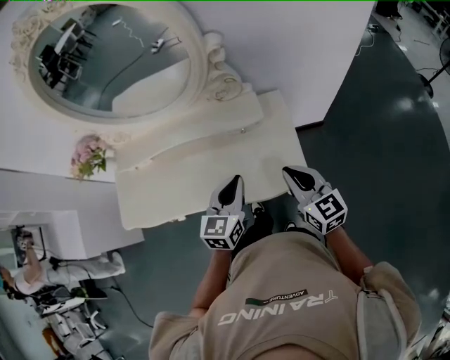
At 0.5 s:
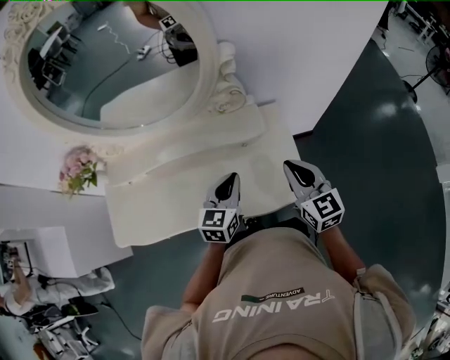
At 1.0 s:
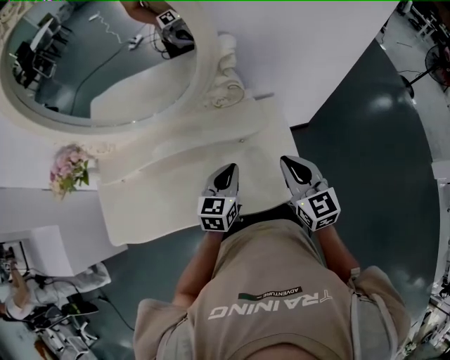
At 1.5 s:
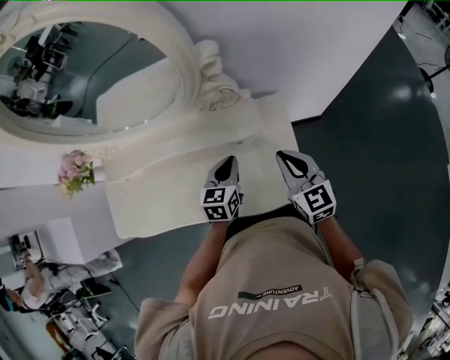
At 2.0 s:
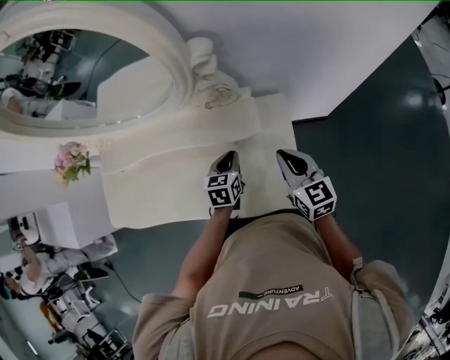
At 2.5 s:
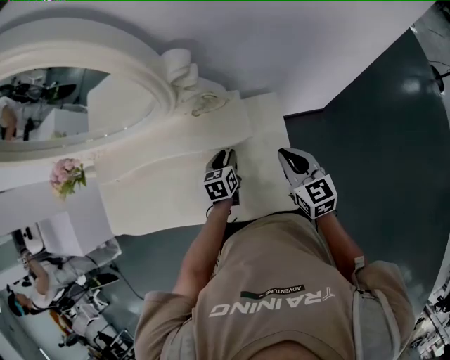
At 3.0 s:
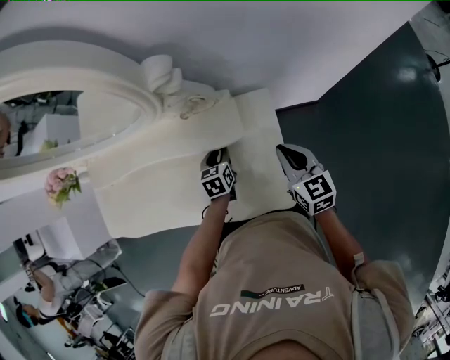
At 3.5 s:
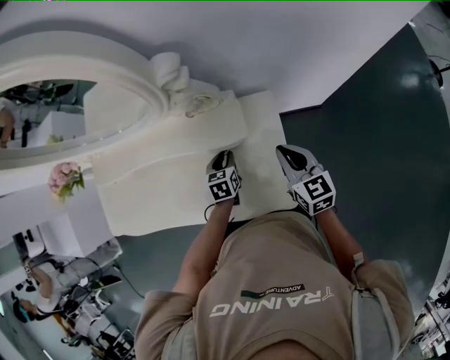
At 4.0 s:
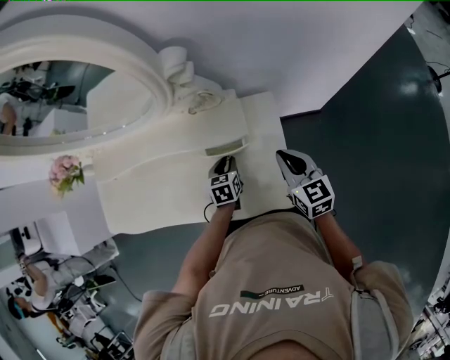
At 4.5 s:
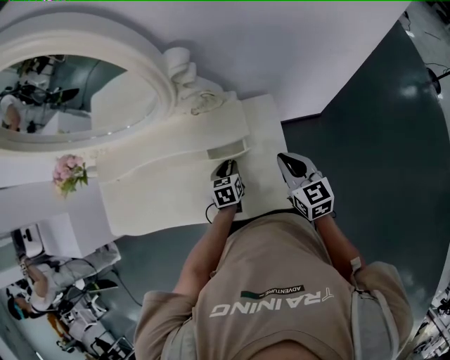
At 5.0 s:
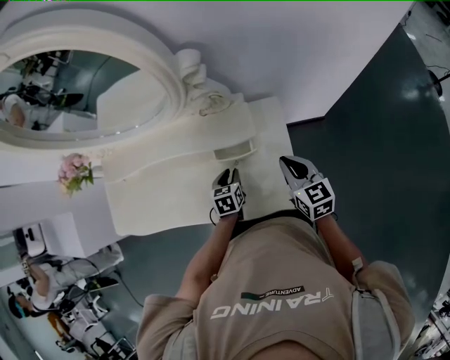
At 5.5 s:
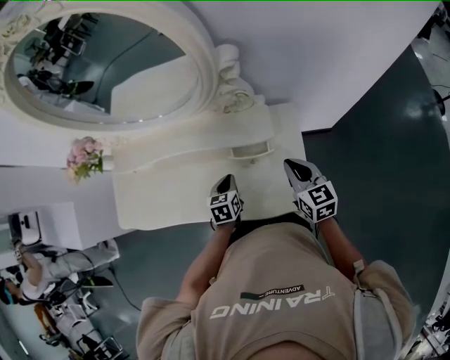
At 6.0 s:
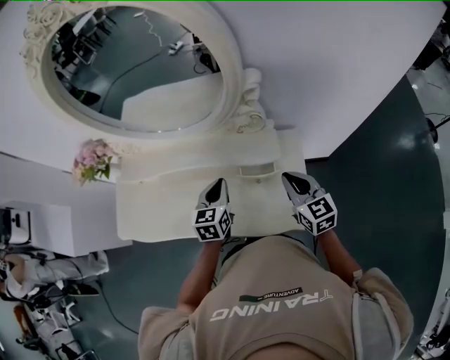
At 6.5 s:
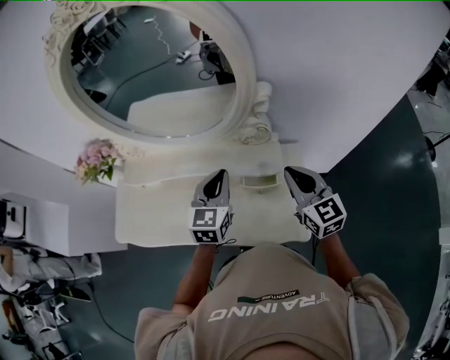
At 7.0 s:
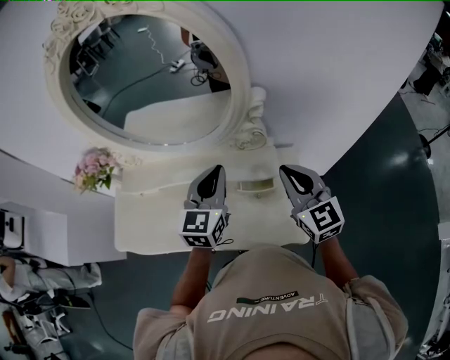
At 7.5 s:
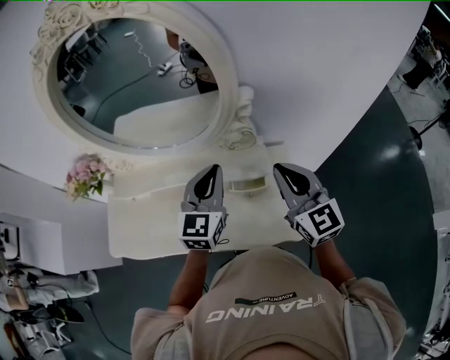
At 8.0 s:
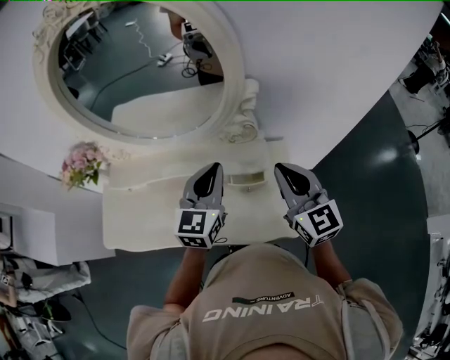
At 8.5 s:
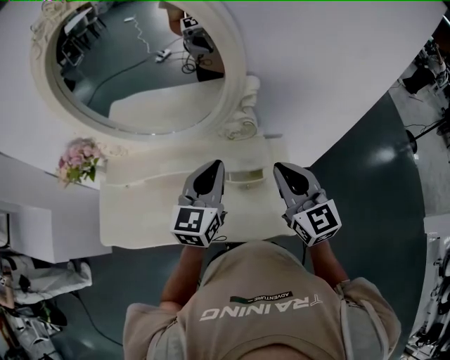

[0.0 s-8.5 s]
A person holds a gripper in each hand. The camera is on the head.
0.0 to 2.0 s: The right gripper heads forward, covering some 15 cm; the left gripper is displaced forward and downward by some 20 cm, and turns by approximately 20 degrees.
2.0 to 4.0 s: The left gripper heads downward, covering roughly 5 cm.
4.0 to 6.5 s: The left gripper shifts approximately 30 cm upward, tilts its fingers some 30 degrees upward, and closes its fingers; the right gripper travels upward and to the left by approximately 20 cm.
6.5 to 8.5 s: The grippers both shift upward by some 5 cm.

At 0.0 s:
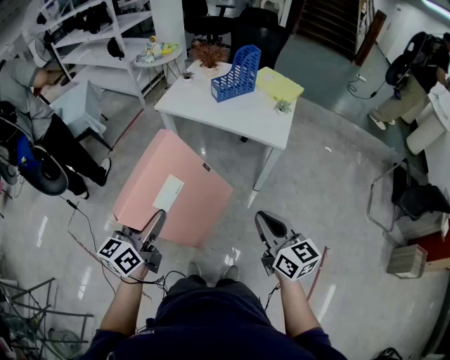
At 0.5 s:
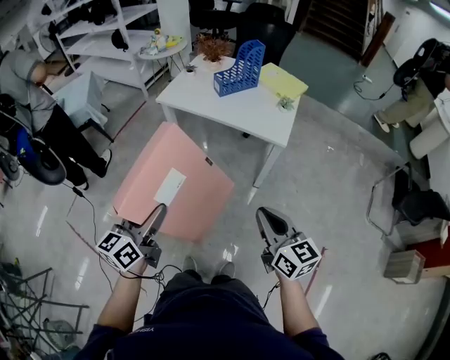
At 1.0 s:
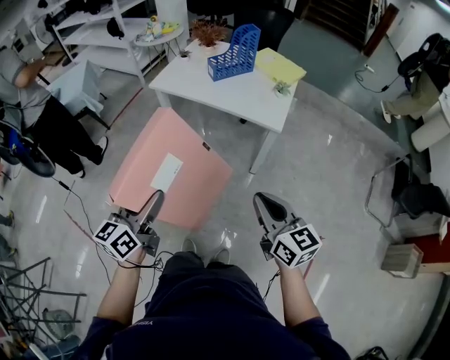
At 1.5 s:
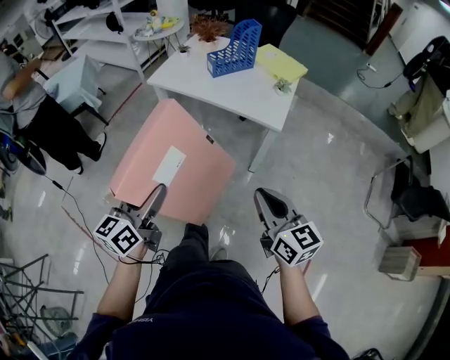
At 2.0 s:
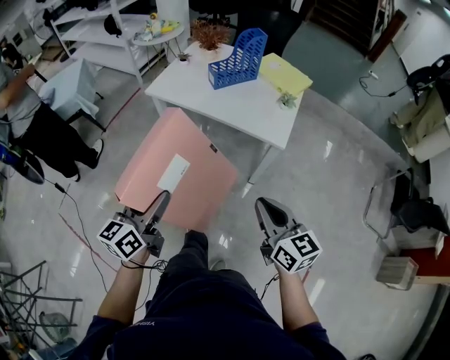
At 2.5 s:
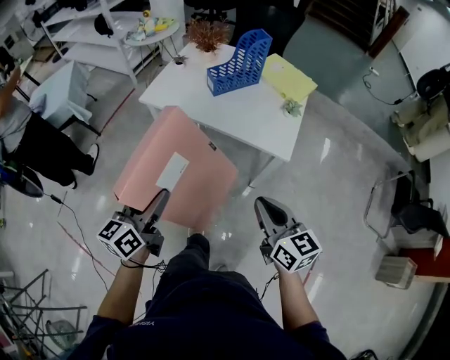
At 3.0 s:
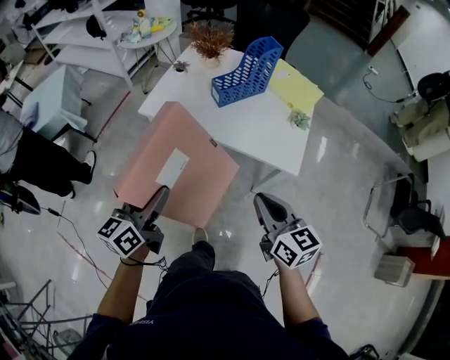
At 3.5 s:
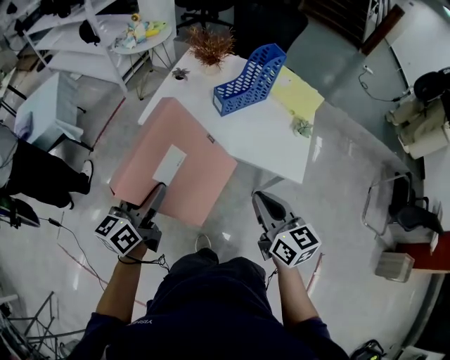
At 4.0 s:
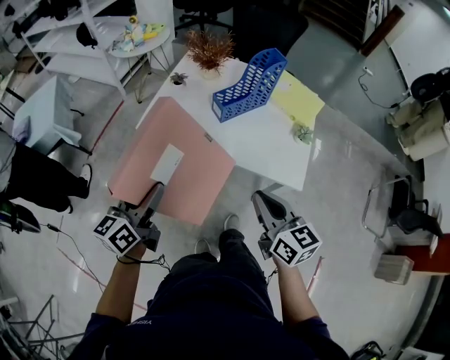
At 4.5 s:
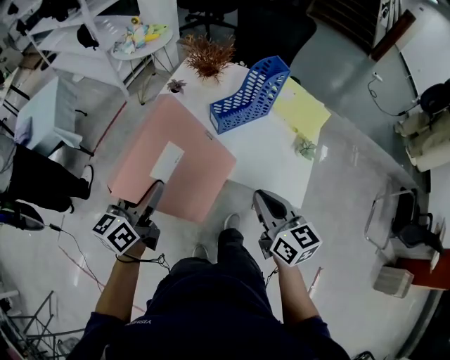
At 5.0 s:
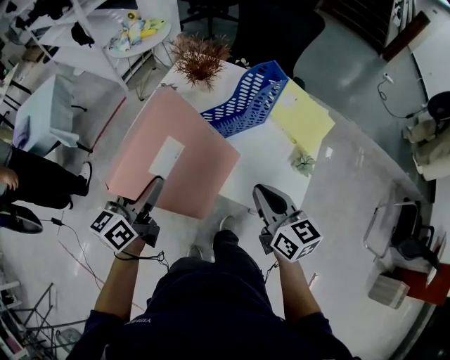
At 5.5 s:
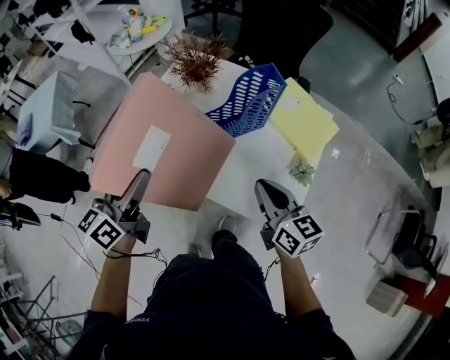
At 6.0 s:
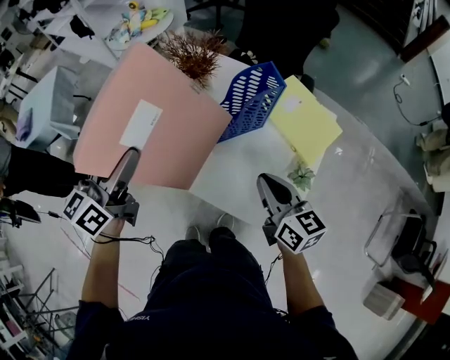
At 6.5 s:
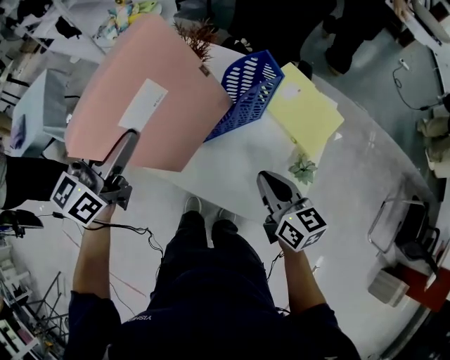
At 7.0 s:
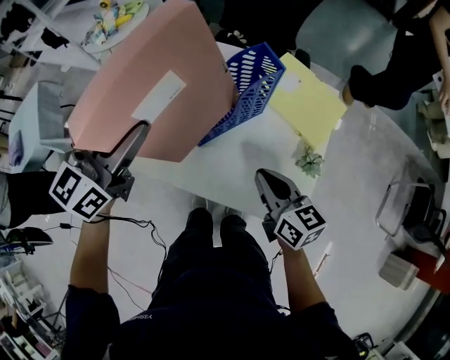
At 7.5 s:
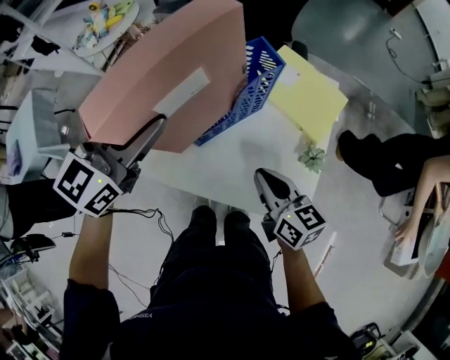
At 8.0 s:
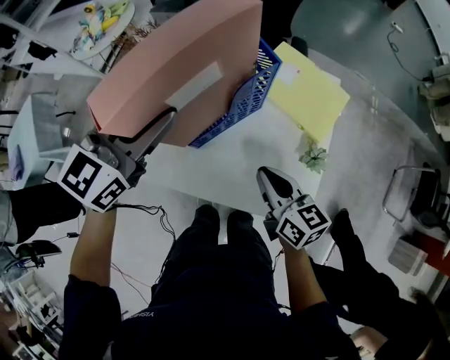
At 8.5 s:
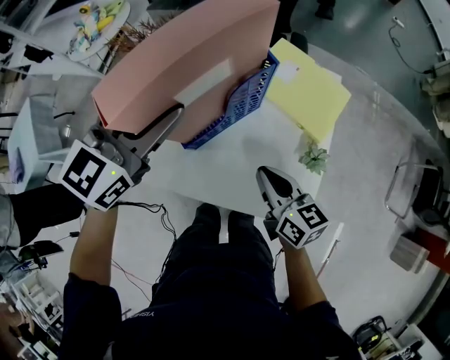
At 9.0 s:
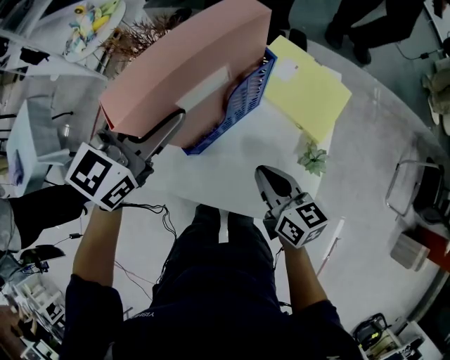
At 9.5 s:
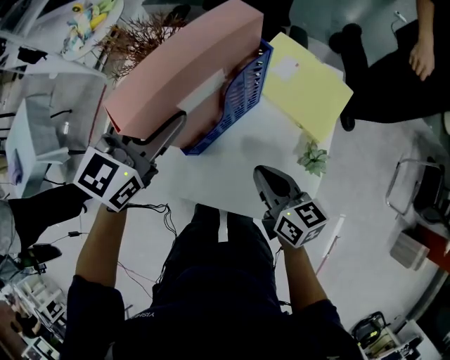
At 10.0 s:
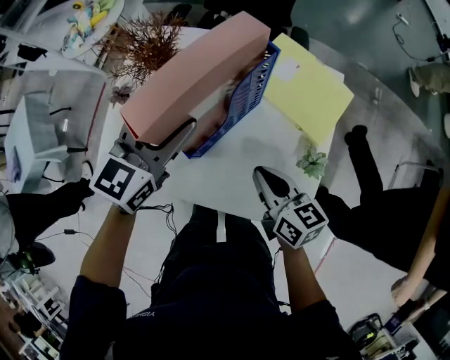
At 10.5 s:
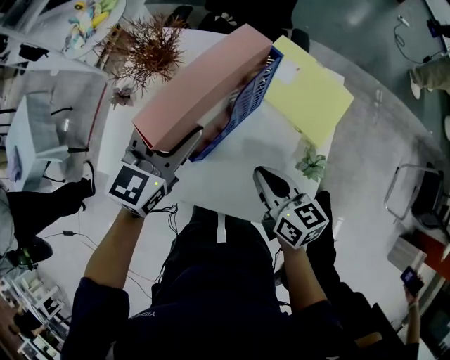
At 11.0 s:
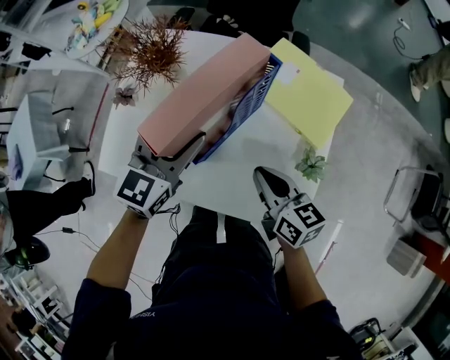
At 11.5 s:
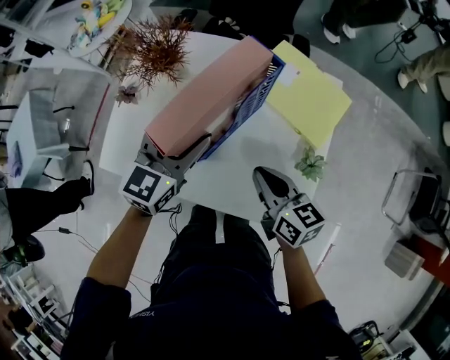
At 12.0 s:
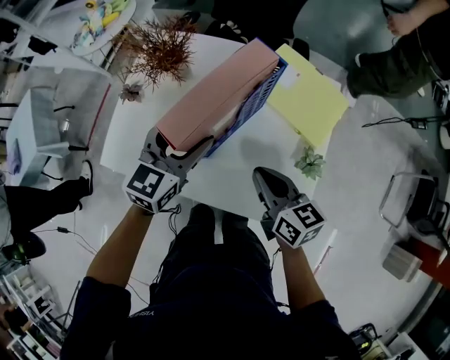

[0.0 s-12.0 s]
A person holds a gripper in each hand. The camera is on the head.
0.0 to 2.0 s: The right gripper is displaced forward by approximately 10 cm. Meanwhile the left gripper is displaced forward and to the right by approximately 10 cm.
2.0 to 4.0 s: The grippers both shift forward by about 25 cm.
4.0 to 6.0 s: The two grippers go some 25 cm forward and to the right.
6.0 to 8.0 s: The right gripper heads downward, covering roughly 5 cm. The left gripper heads forward and to the right, covering some 15 cm, and rotates about 40 degrees.
8.0 to 10.0 s: The left gripper heads downward, covering some 10 cm.
10.0 to 12.0 s: The left gripper changes place by roughly 5 cm.

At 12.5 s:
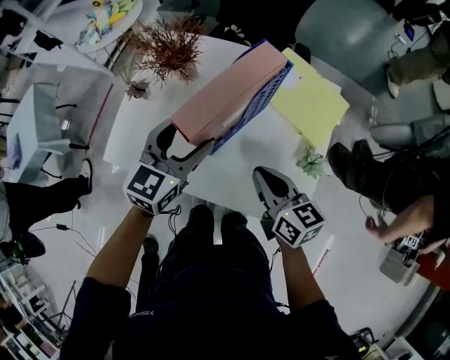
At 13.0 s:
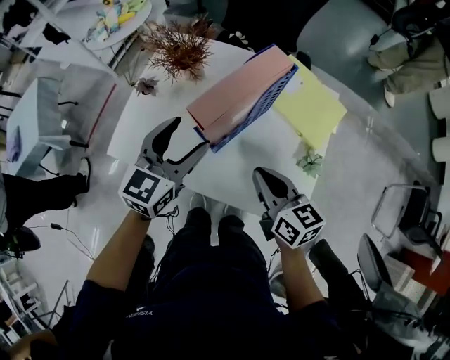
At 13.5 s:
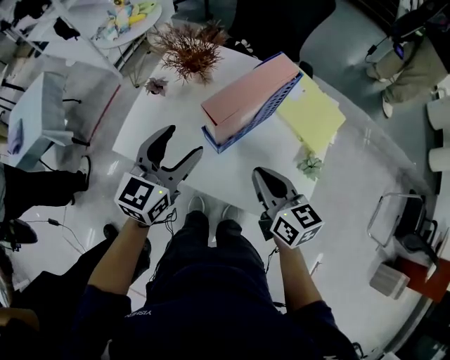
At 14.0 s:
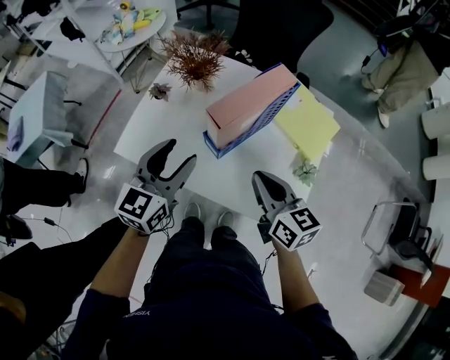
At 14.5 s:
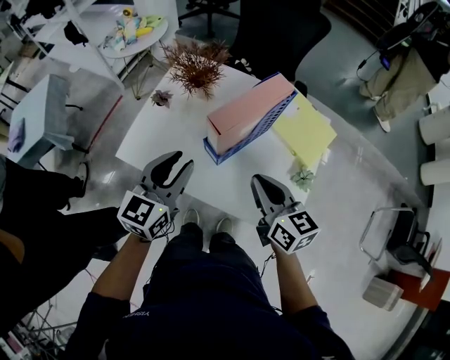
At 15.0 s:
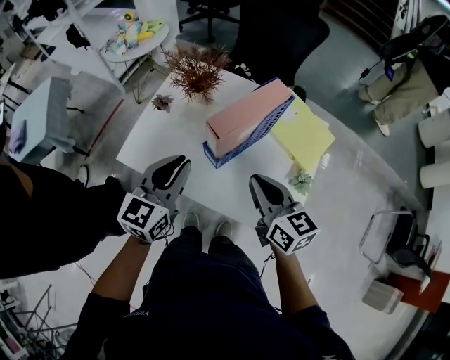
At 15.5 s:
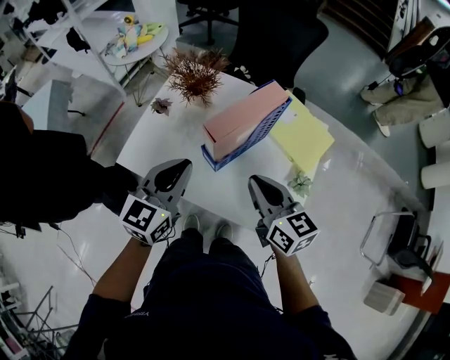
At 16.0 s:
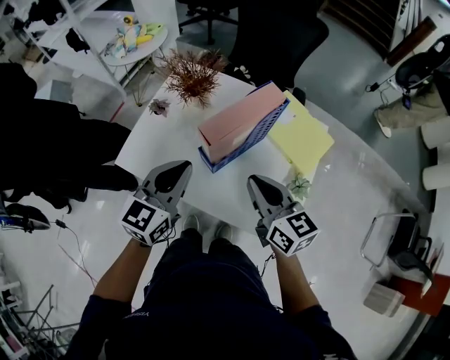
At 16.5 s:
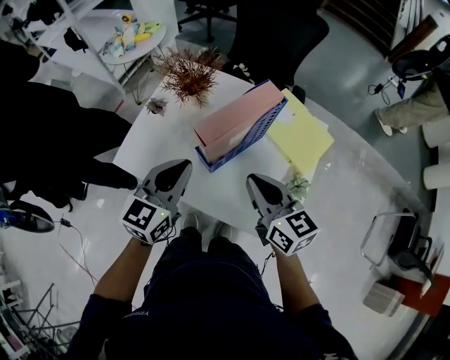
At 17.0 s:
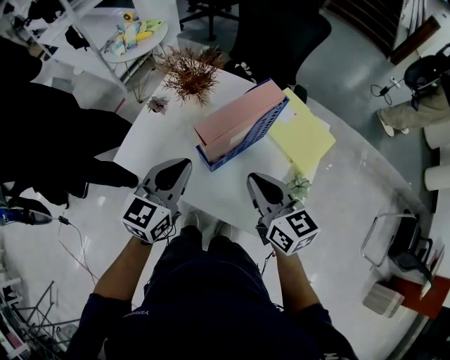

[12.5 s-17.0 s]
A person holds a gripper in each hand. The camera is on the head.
12.5 to 14.5 s: The left gripper moves backward, to the left and upward, roughly 15 cm, and closes up; the right gripper travels upward by approximately 10 cm.
14.5 to 17.0 s: The grippers stay close to where they were, moving slightly.

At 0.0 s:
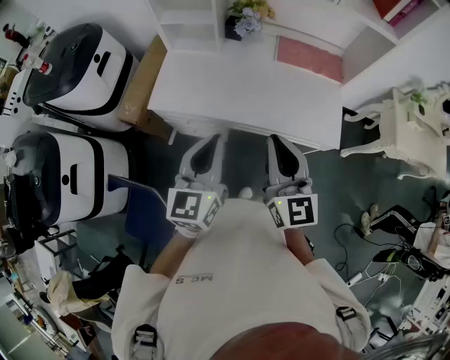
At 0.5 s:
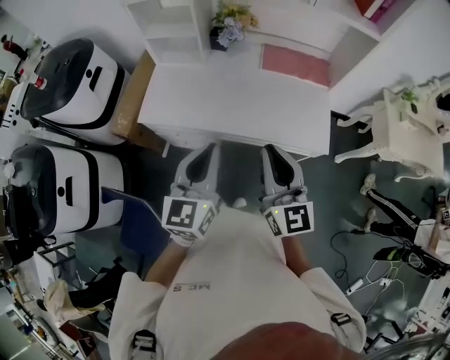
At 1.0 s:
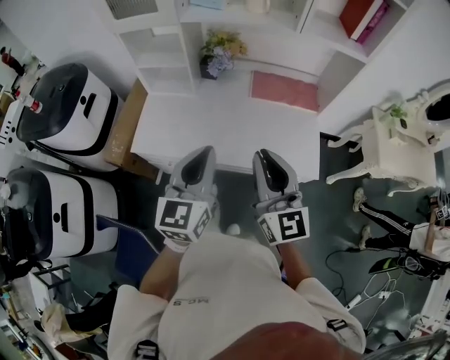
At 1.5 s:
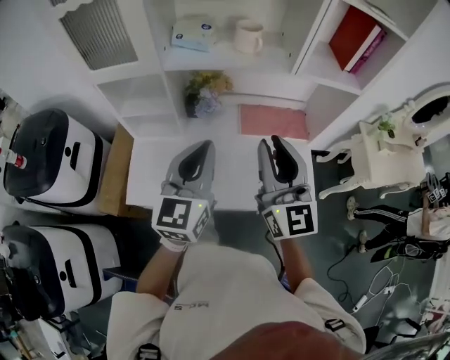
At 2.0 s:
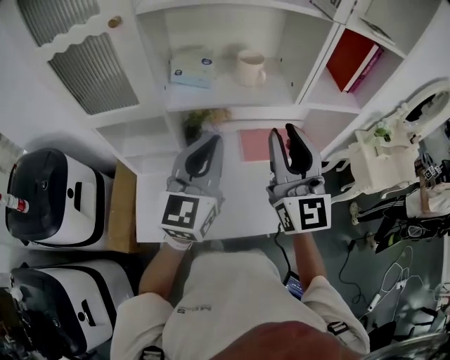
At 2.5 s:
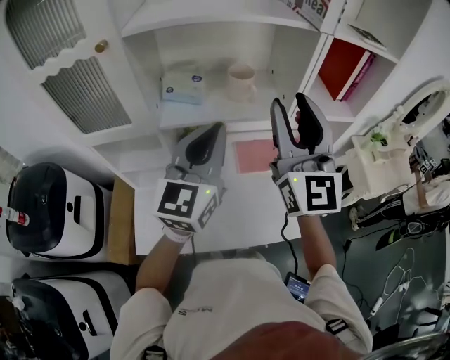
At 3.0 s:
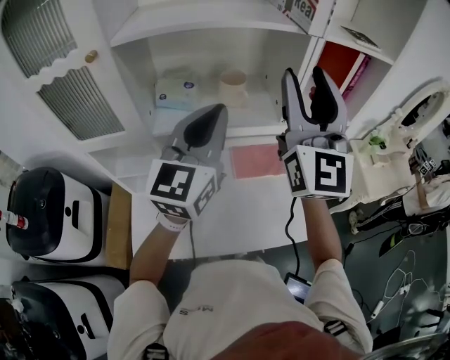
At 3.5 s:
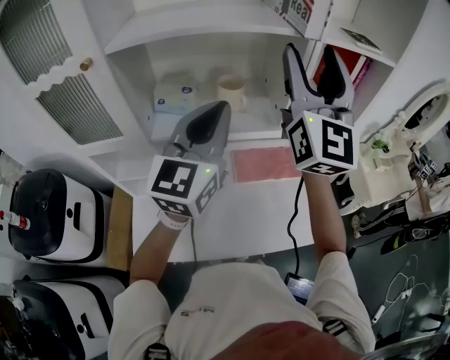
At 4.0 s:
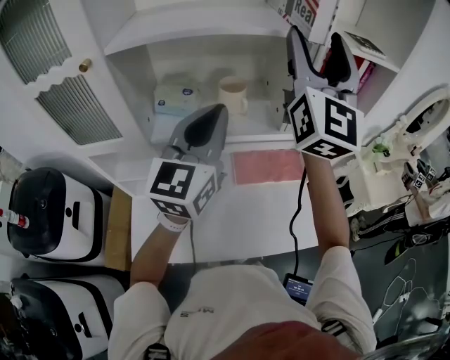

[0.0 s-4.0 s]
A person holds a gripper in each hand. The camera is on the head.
0.0 to 2.0 s: Both grippers move forward and upward, roughly 40 cm. The left gripper turns by about 20 degrees; the right gripper turns by approximately 30 degrees.
2.0 to 4.0 s: The left gripper goes about 15 cm forward, upward and to the right. Meanwhile the right gripper moves upward and forward, about 25 cm, changes its angle by approximately 20 degrees, and opens.
